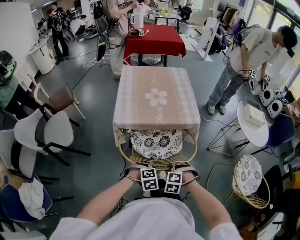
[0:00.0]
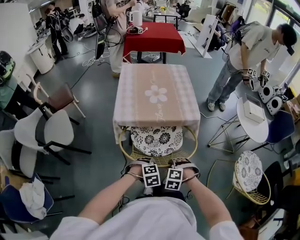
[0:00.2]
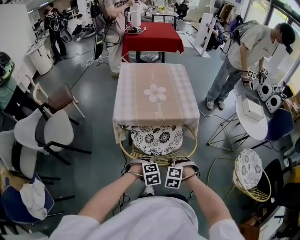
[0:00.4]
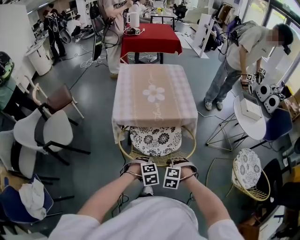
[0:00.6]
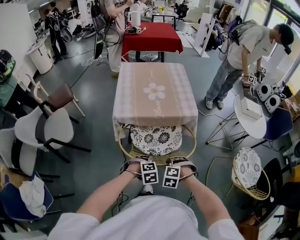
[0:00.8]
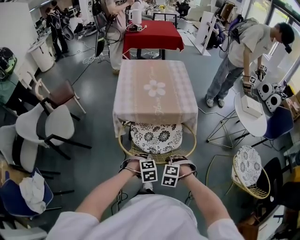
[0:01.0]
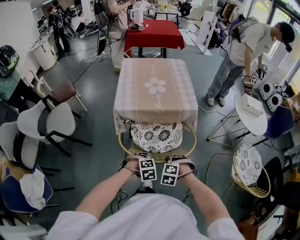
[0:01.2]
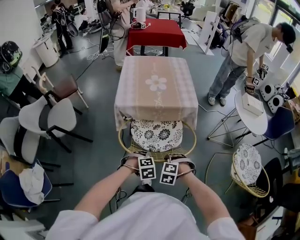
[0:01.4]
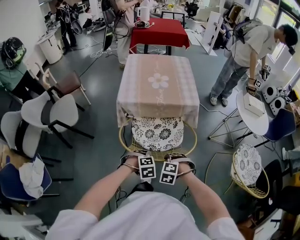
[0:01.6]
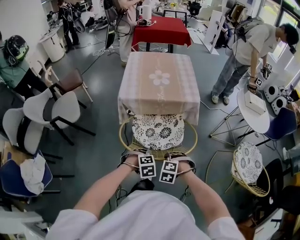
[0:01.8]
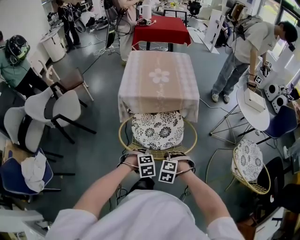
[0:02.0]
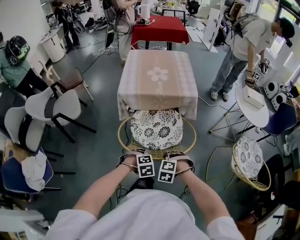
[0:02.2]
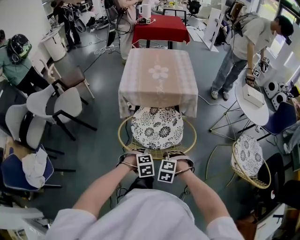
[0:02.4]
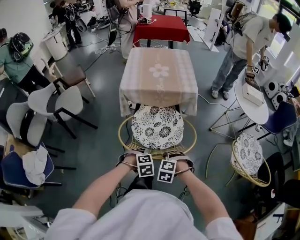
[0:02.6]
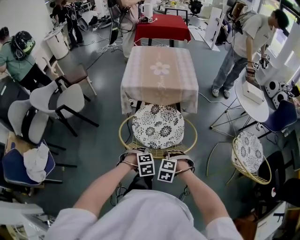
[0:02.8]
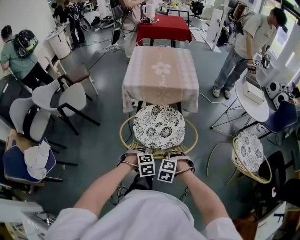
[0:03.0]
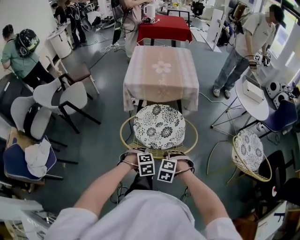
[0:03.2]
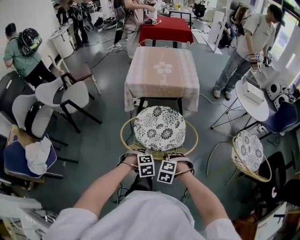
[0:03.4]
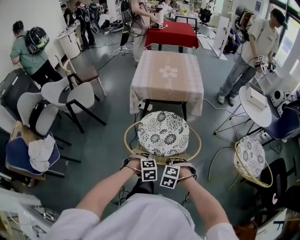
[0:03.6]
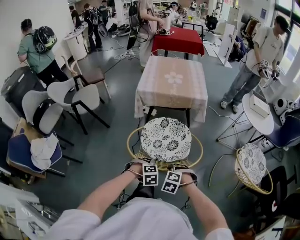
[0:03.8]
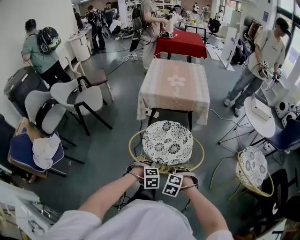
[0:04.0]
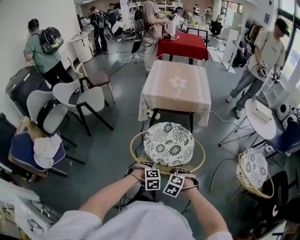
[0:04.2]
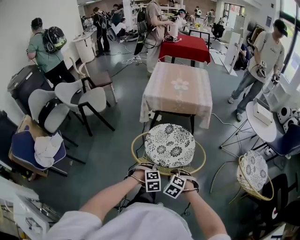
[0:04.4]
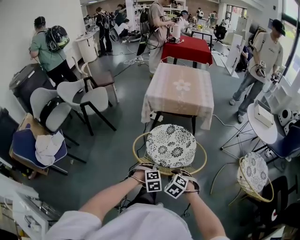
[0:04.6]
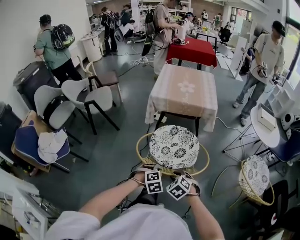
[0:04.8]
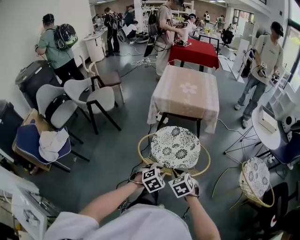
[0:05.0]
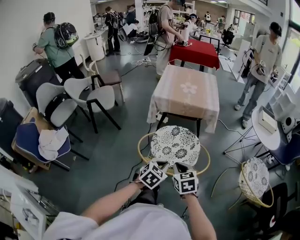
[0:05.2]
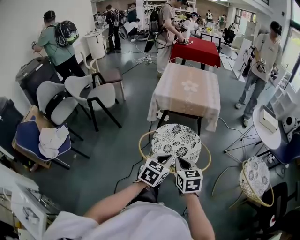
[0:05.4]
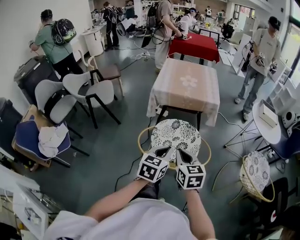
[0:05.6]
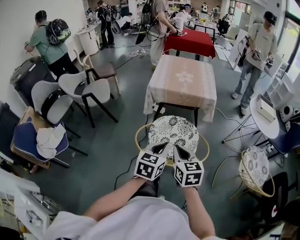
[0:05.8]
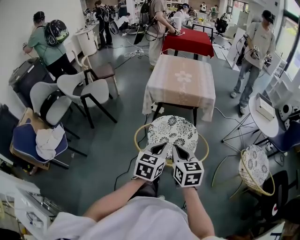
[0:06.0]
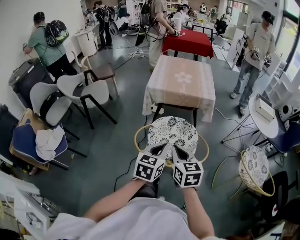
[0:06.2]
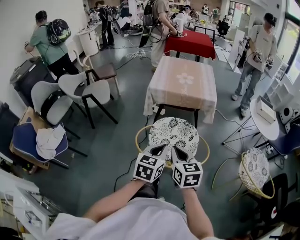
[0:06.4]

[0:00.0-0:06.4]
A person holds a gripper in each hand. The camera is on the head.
0:00.0 to 0:01.6: Both grippers travel together backward, roughly 10 cm.
0:01.6 to 0:03.2: The right gripper ends up some 15 cm from where it was. The left gripper shifts by approximately 15 cm.
0:03.2 to 0:04.8: The right gripper ends up about 5 cm from where it was, and changes its angle by some 30 degrees, while the left gripper shifts by roughly 5 cm.
0:04.8 to 0:06.4: The two grippers go some 20 cm upward. The left gripper points its fingers approximately 40 degrees further upward, and closes its fingers. Meanwhile the right gripper tilts its fingers some 40 degrees upward, and closes.

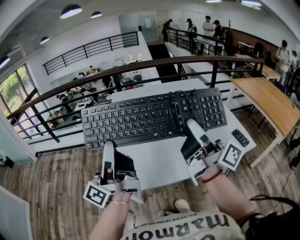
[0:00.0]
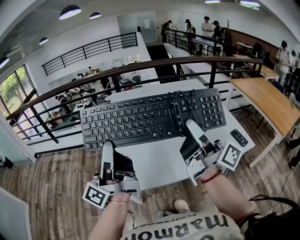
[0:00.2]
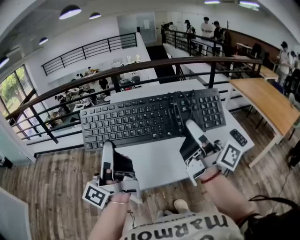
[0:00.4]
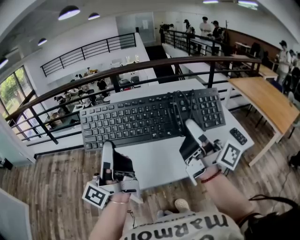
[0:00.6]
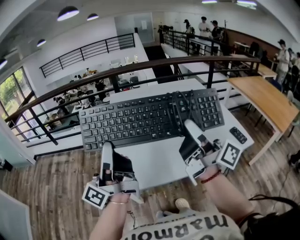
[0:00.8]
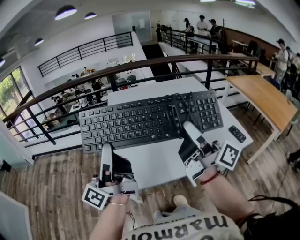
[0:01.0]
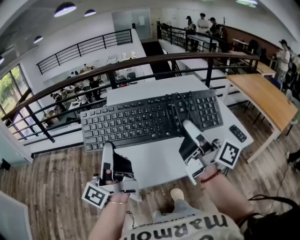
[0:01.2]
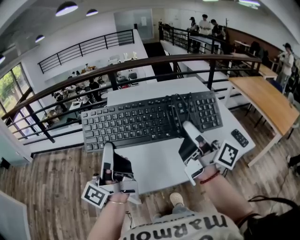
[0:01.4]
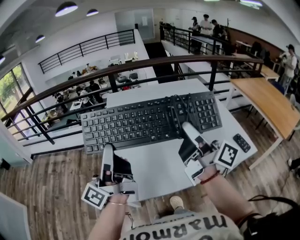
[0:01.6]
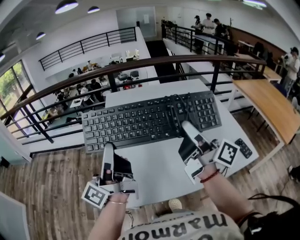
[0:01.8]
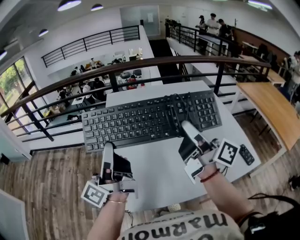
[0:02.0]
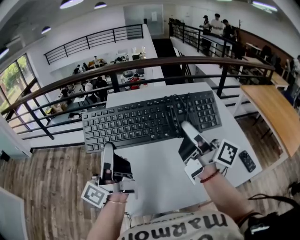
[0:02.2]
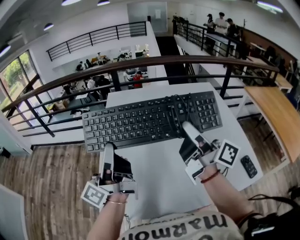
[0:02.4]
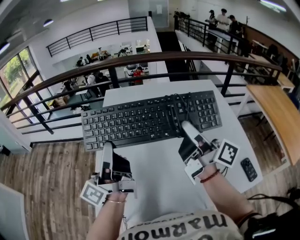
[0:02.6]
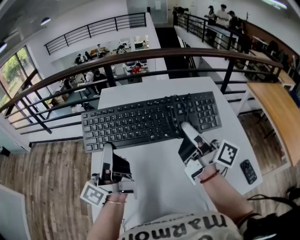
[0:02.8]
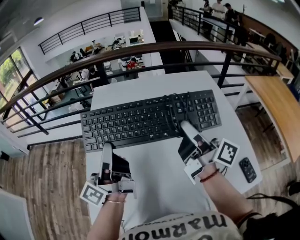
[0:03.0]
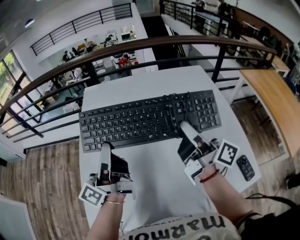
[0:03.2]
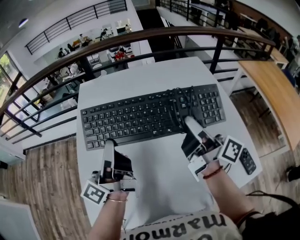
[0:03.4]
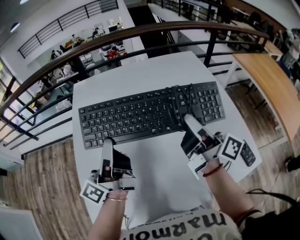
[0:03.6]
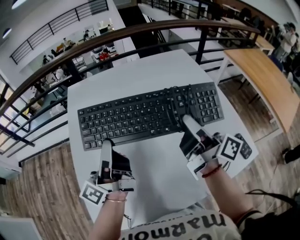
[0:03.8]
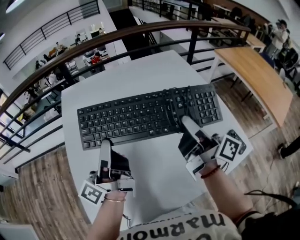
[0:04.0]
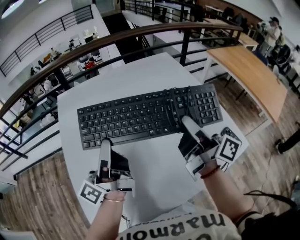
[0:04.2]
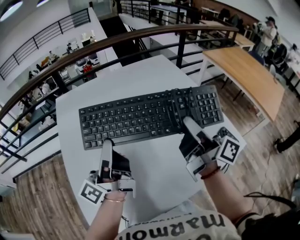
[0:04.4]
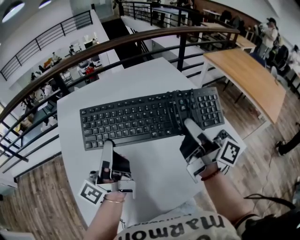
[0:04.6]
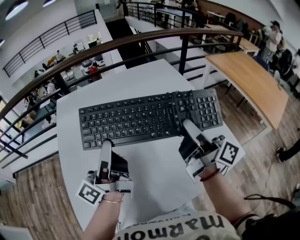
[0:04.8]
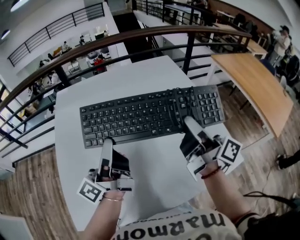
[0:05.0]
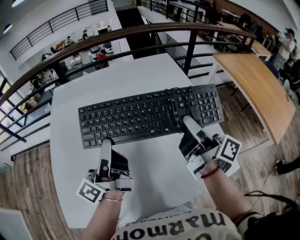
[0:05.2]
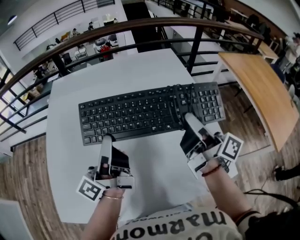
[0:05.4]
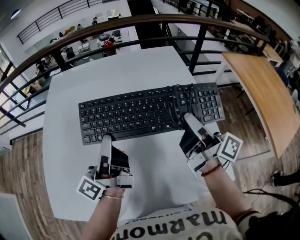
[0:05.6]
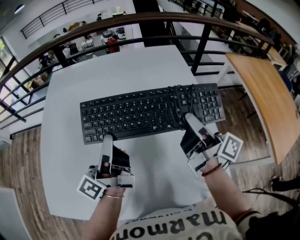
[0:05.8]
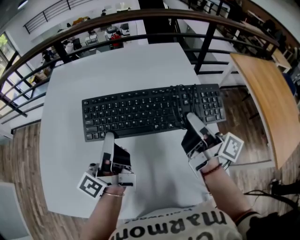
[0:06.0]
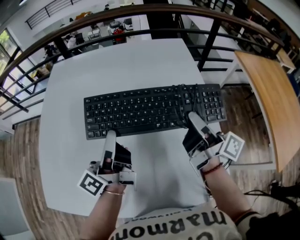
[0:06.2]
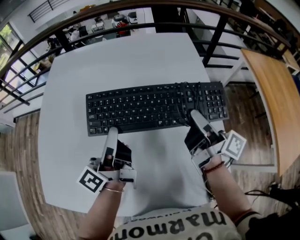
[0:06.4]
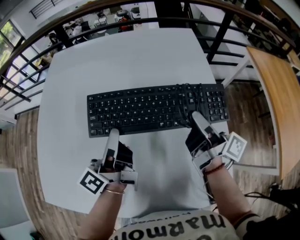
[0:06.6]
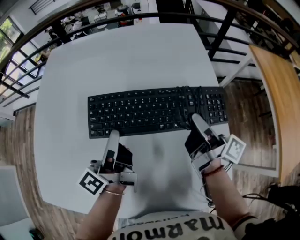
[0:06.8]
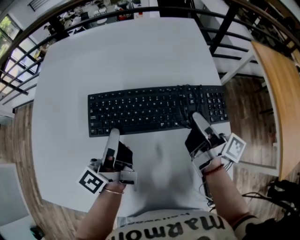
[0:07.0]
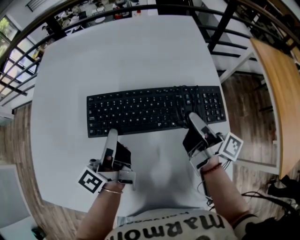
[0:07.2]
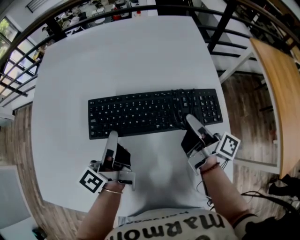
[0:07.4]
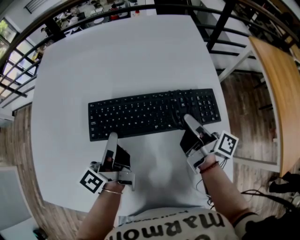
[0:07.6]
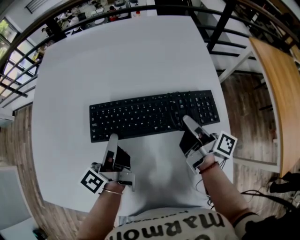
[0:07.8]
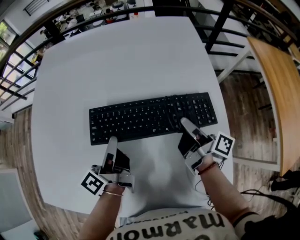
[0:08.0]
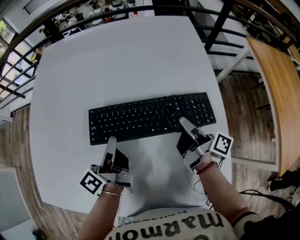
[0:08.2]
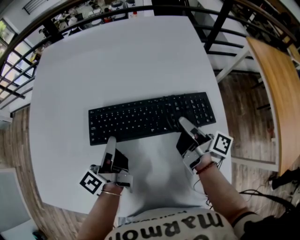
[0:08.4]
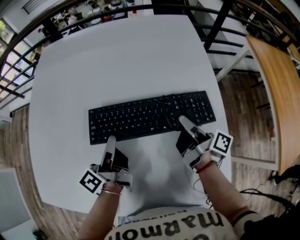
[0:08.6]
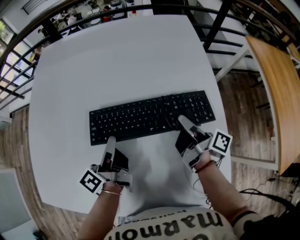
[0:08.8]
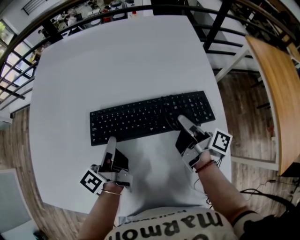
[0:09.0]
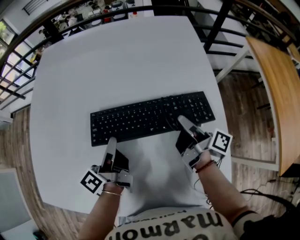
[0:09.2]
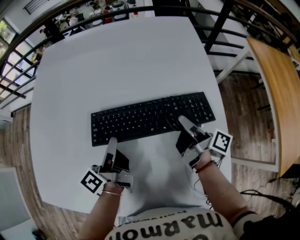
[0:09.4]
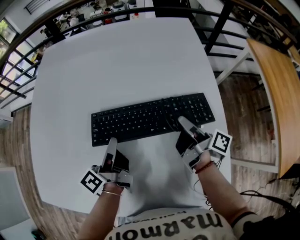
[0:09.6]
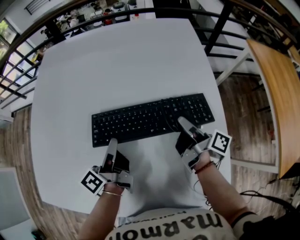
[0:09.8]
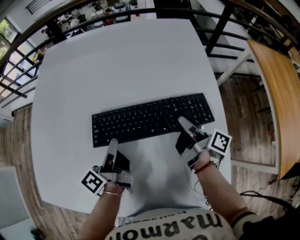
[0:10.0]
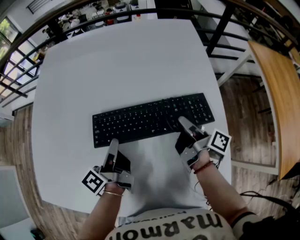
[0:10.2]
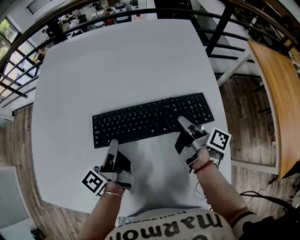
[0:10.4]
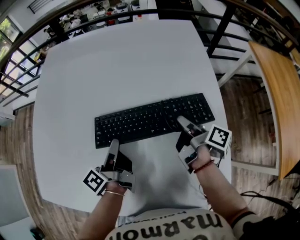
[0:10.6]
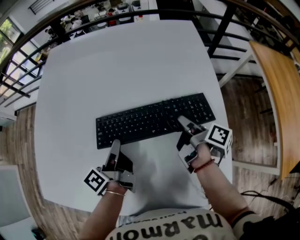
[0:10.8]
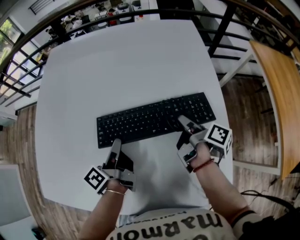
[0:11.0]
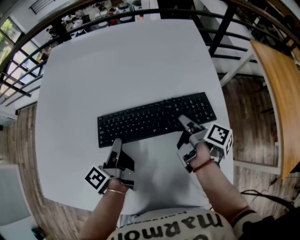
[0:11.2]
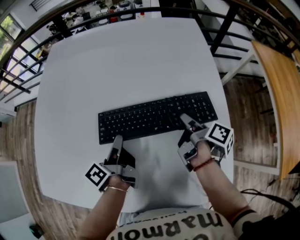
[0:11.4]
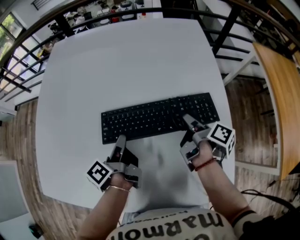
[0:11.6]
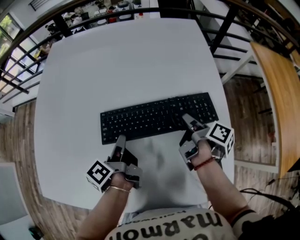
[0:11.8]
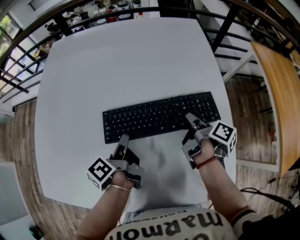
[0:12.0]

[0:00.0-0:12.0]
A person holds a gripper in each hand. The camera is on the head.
0:00.0 to 0:03.0: There are only small adjustments of the grippers.
0:03.0 to 0:04.4: The right gripper is displaced backward by some 5 cm, and swivels about 20 degrees. The left gripper swivels about 20 degrees.
0:04.4 to 0:06.0: The right gripper moves forward, about 5 cm.
0:06.0 to 0:07.6: The right gripper swivels some 20 degrees. Meanwhile the left gripper rotates about 20 degrees.
0:07.6 to 0:10.4: There are only small adjustments of the grippers.
0:10.4 to 0:12.0: There are only small adjustments of the grippers.

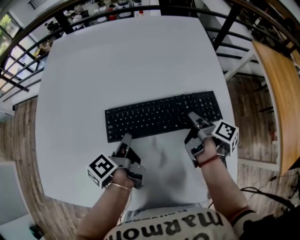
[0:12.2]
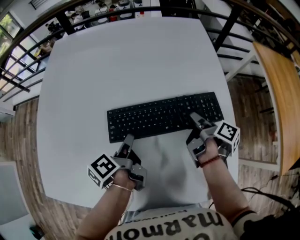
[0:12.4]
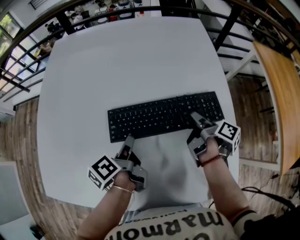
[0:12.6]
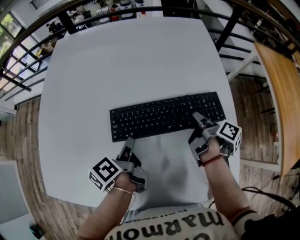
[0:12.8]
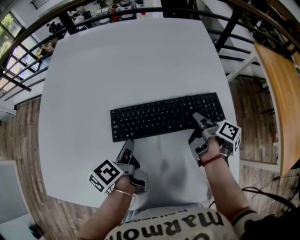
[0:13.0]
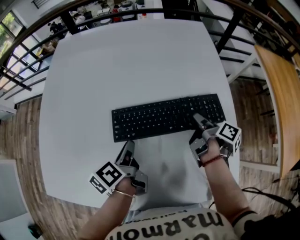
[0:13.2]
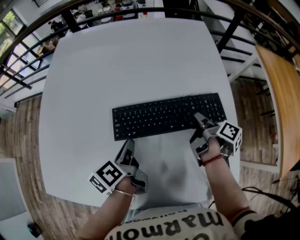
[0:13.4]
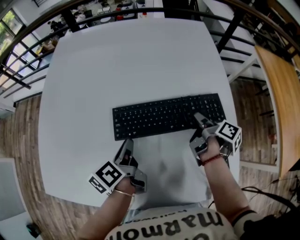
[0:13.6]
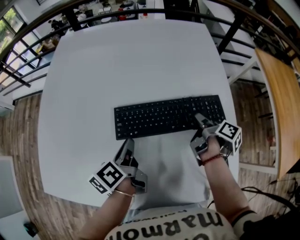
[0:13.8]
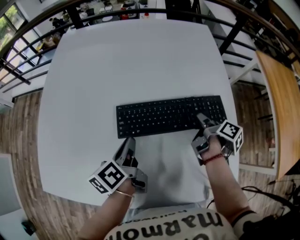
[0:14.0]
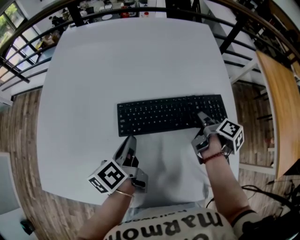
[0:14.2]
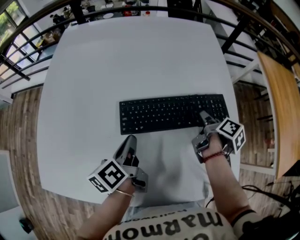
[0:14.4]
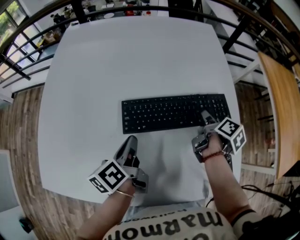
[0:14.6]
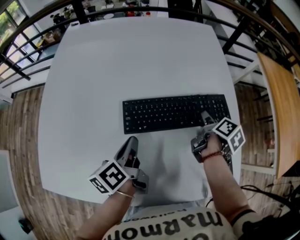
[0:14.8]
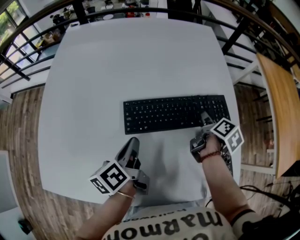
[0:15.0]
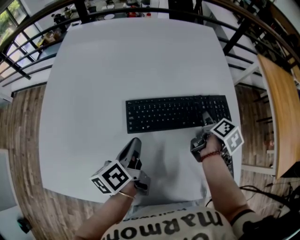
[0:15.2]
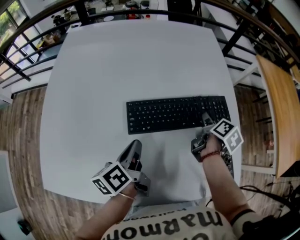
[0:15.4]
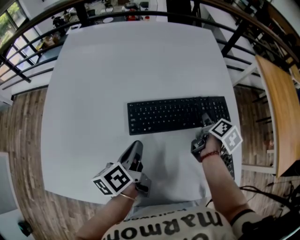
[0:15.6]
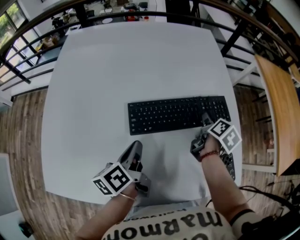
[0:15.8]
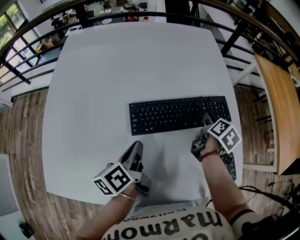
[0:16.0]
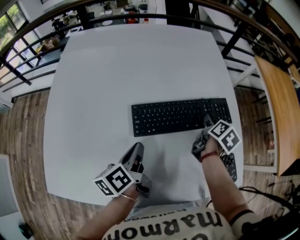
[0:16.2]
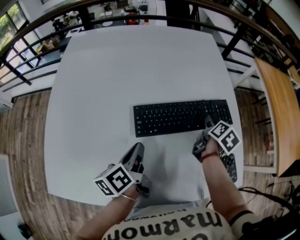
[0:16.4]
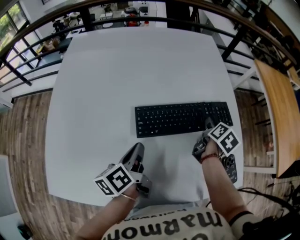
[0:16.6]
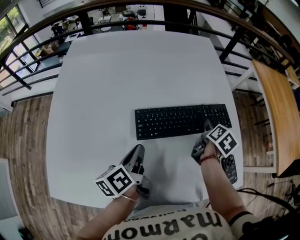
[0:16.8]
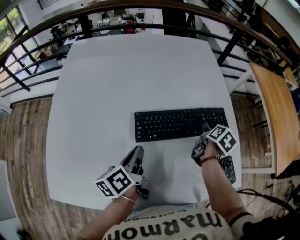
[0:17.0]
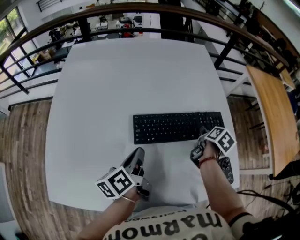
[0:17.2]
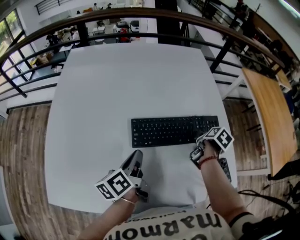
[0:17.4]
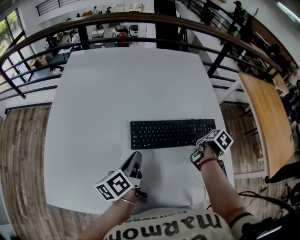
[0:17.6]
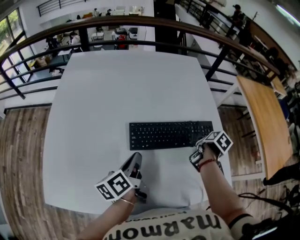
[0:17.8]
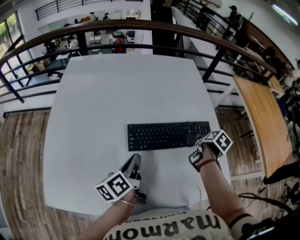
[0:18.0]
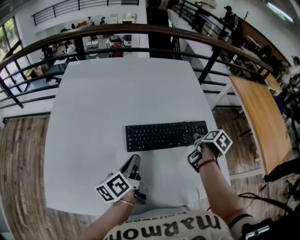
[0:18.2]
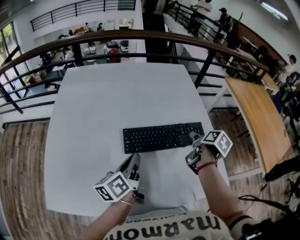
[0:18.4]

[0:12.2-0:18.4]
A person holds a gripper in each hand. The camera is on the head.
0:12.2 to 0:13.8: The grippers make only small movements.
0:13.8 to 0:15.4: The right gripper rotates approximately 30 degrees.
0:15.4 to 0:16.8: There are only small adjustments of the grippers.
0:16.8 to 0:18.4: The grippers both shift upward by about 5 cm.
